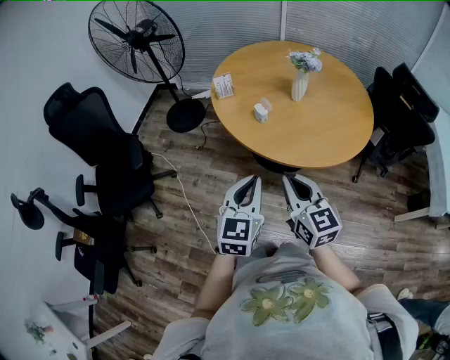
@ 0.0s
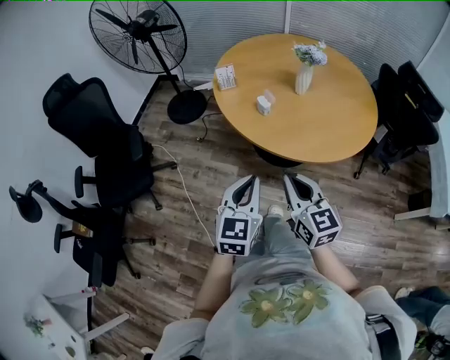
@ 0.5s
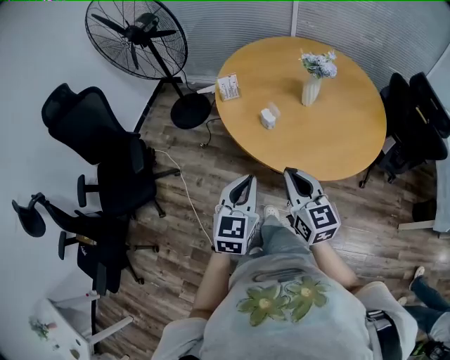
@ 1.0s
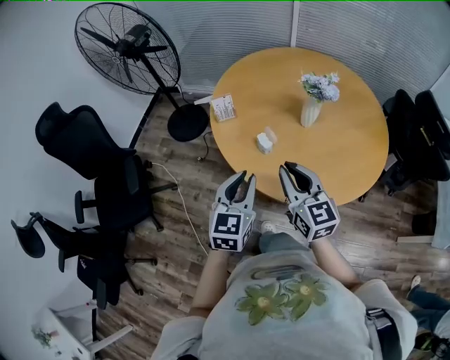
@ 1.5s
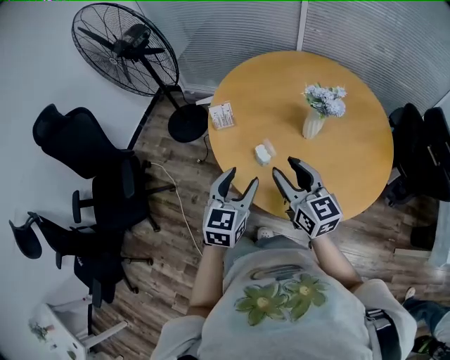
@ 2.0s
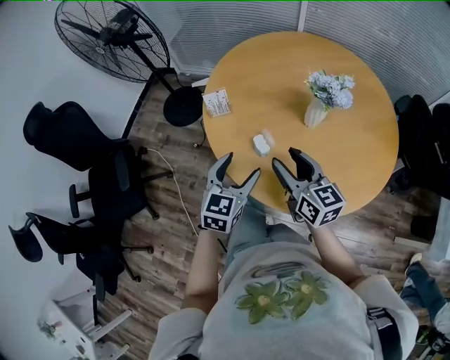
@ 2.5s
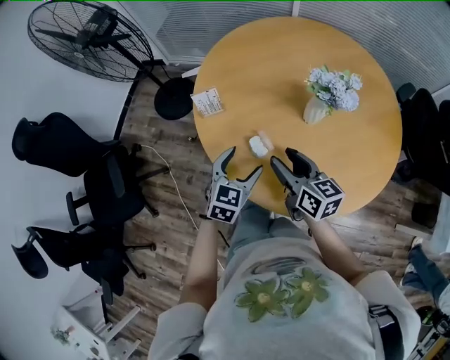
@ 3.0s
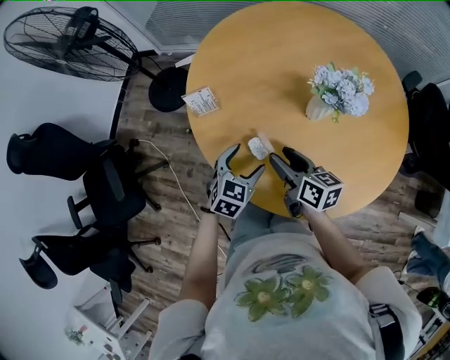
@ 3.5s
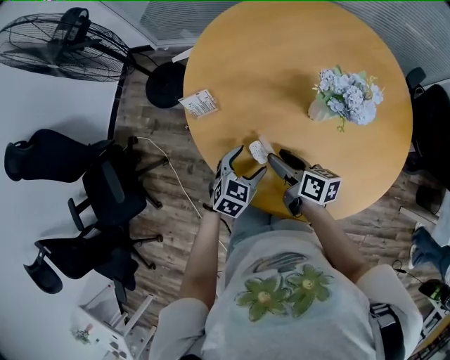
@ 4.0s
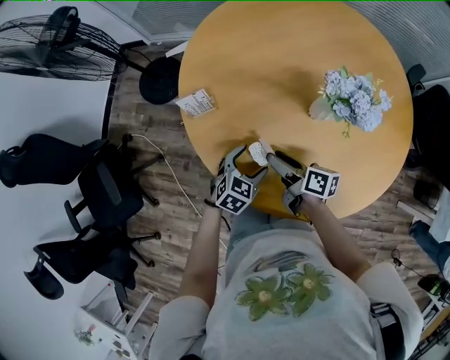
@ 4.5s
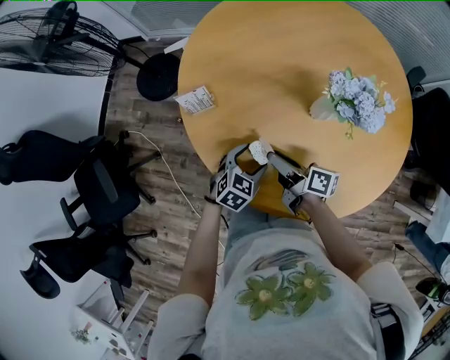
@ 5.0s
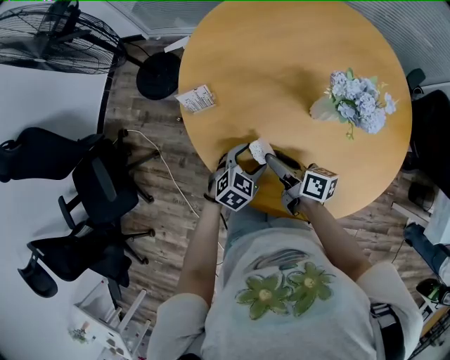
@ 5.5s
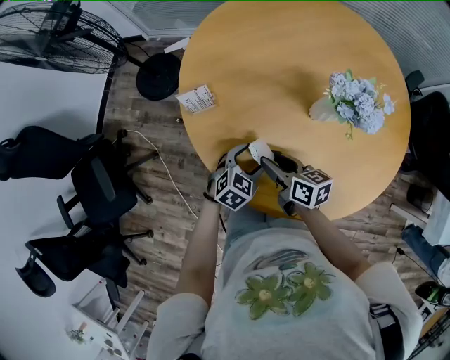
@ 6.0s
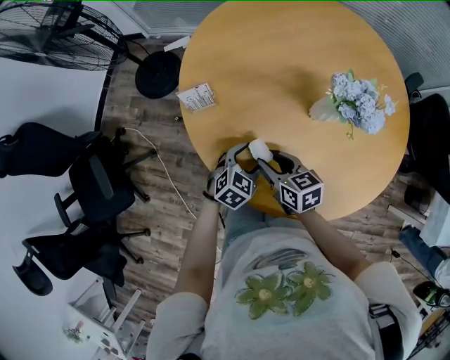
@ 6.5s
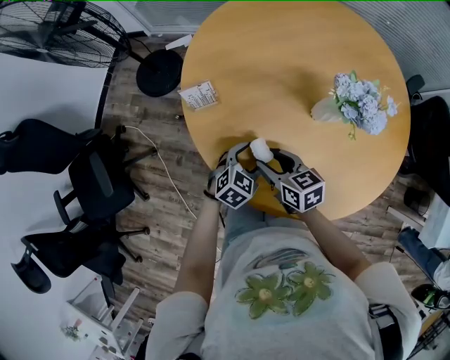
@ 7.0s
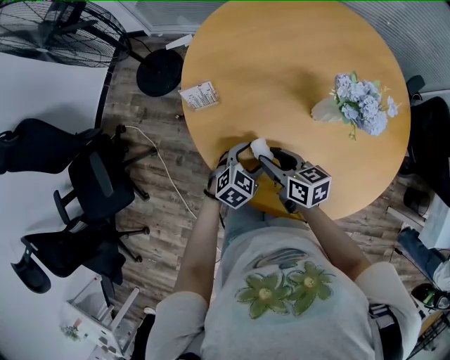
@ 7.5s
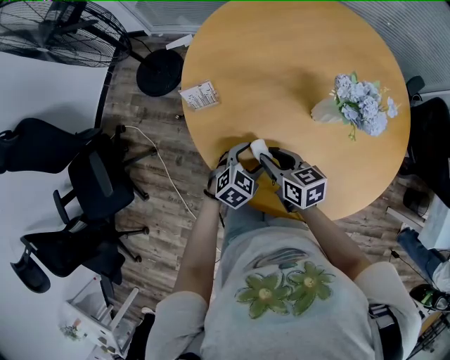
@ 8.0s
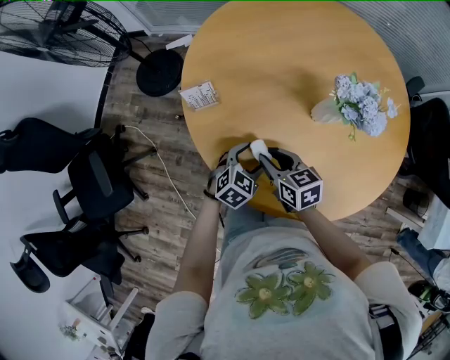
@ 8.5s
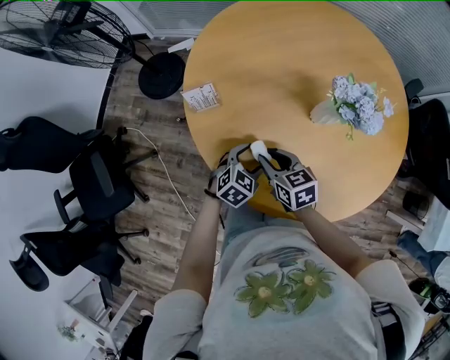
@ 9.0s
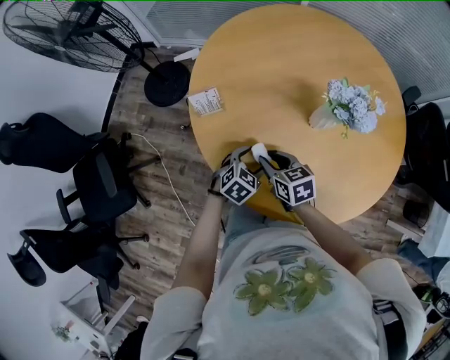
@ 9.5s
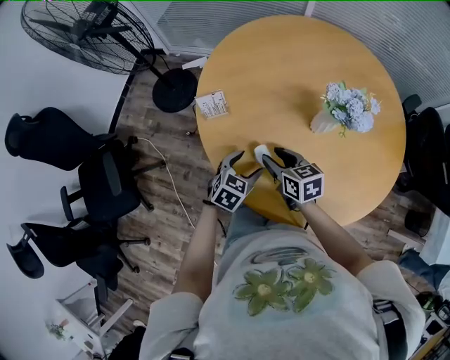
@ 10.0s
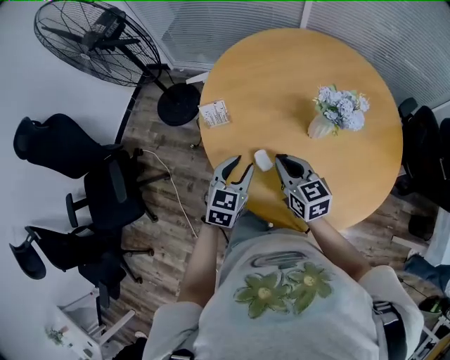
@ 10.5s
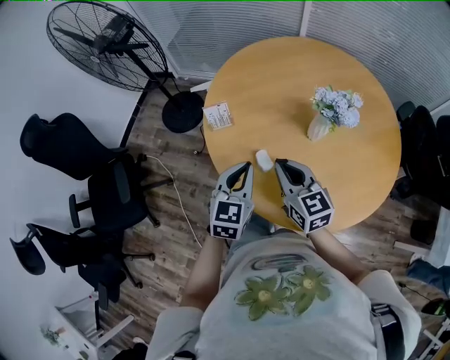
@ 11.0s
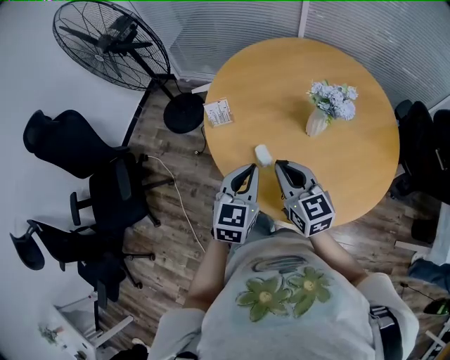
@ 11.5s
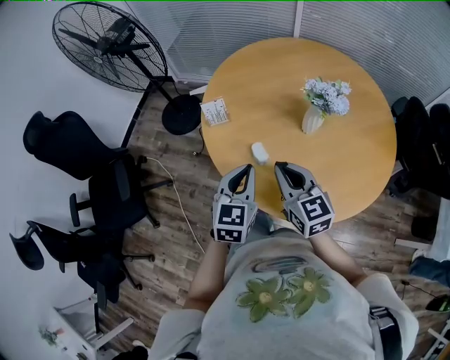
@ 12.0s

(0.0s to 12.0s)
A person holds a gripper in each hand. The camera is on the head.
0.0s - 2.0s: Both grippers travel together forward, roughly 30 cm. The left gripper opens its fingers. Meanwhile the right gripper opens up.
2.0s - 4.0s: Both grippers move downward and forward, approximately 25 cm. The right gripper twists approximately 50 degrees clockwise, seen from behind; the left gripper rotates about 30 degrees.
4.0s - 6.0s: The grippers move only a little.
8.0s - 10.0s: The left gripper changes place by about 5 cm.
10.0s - 12.0s: The right gripper moves upward and backward, about 20 cm, swivels approximately 30 degrees, and closes up; the left gripper travels upward by roughly 20 cm, rotates about 30 degrees, and closes its fingers.

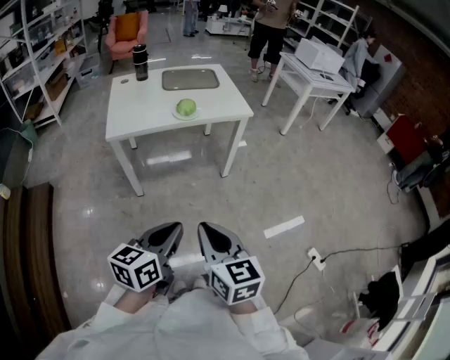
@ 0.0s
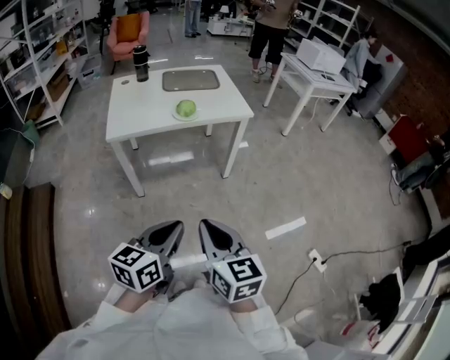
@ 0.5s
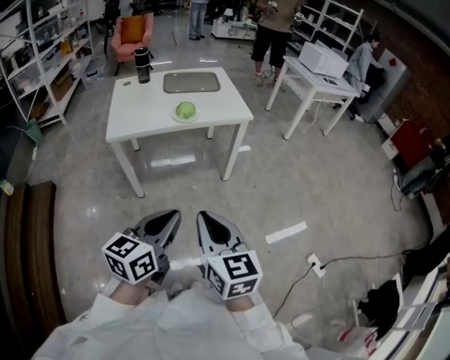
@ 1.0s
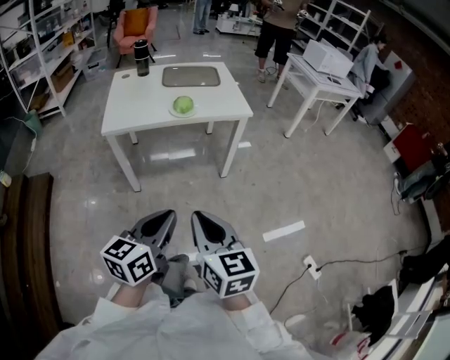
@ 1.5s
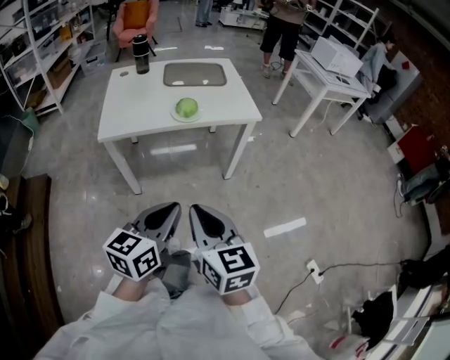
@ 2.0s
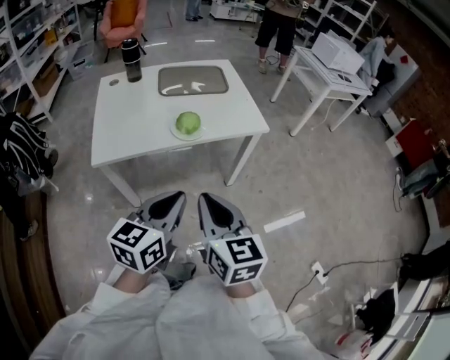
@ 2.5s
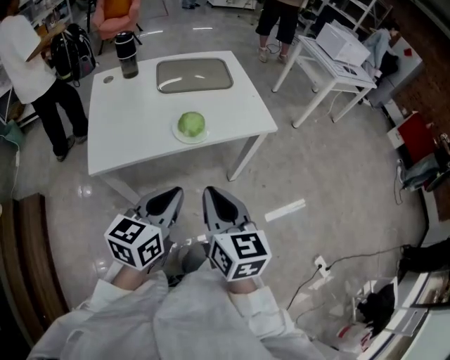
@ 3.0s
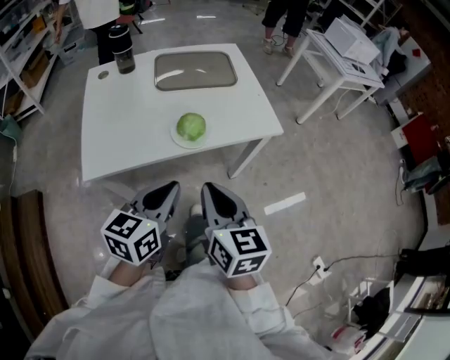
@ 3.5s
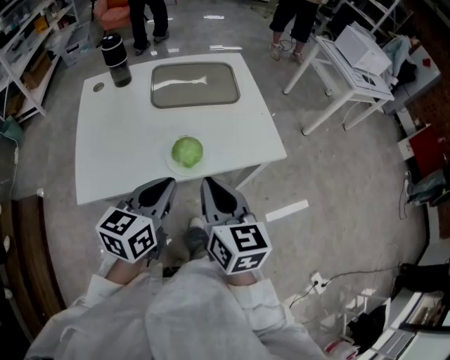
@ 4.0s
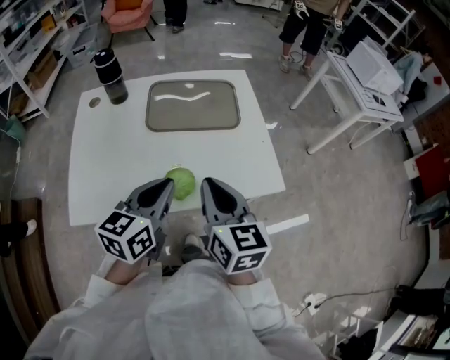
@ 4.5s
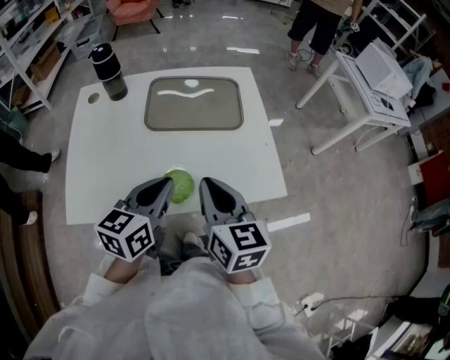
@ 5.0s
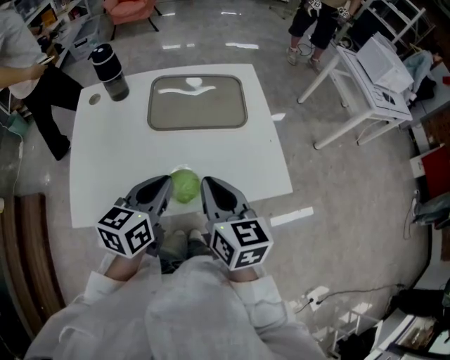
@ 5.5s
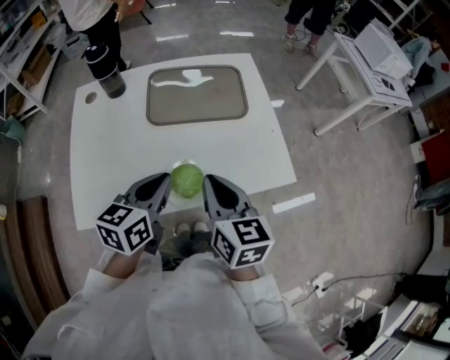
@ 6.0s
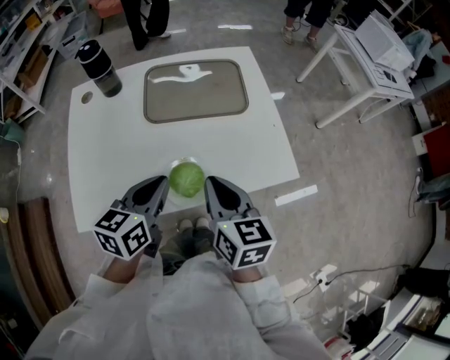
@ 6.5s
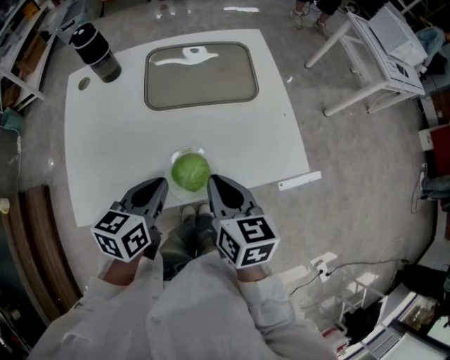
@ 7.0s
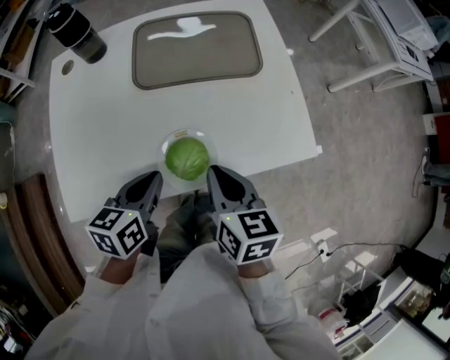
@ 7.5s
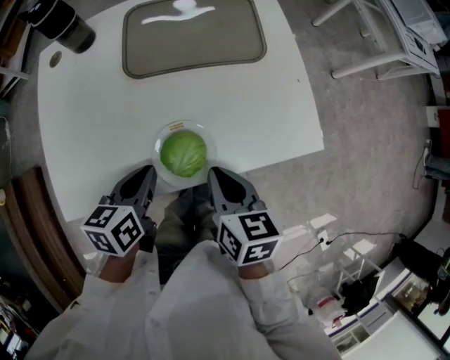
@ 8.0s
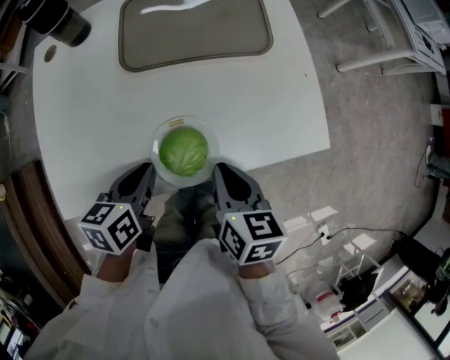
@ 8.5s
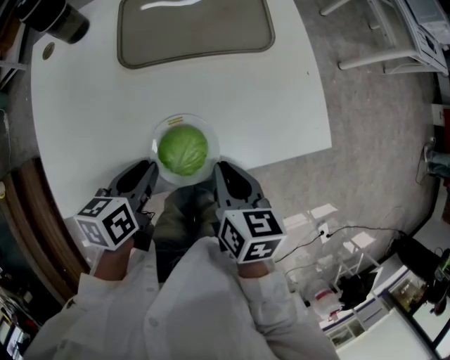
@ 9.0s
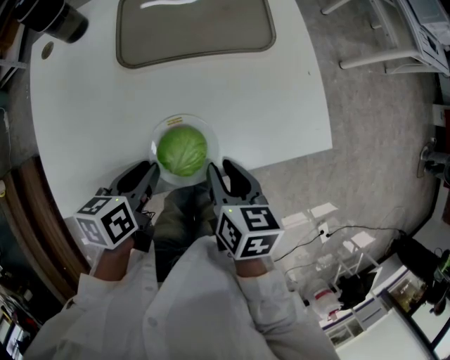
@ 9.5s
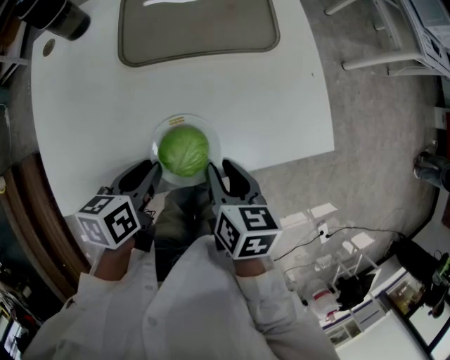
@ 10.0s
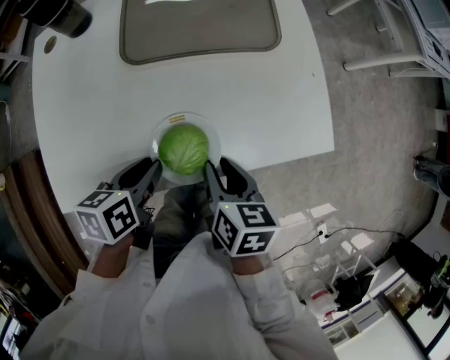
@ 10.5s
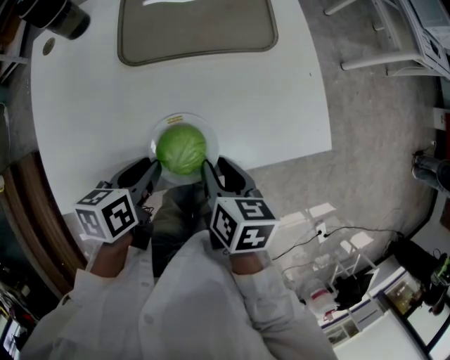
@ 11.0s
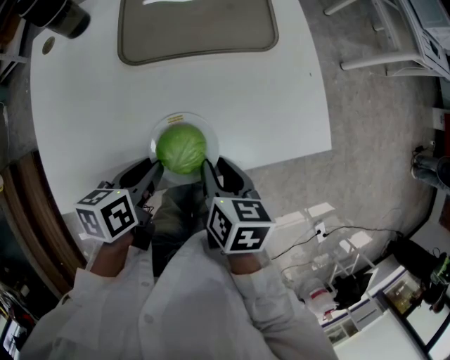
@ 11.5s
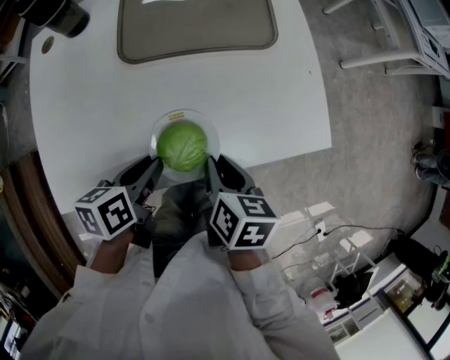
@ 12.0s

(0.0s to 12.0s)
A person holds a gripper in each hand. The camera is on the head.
0.0s - 2.0s: The grippers both shift forward by roughly 15 cm.
2.0s - 4.0s: The pair of grippers is taken forward, some 40 cm.
4.0s - 6.0s: Both grippers move forward, roughly 15 cm.
6.0s - 8.0s: Both grippers move downward, roughly 15 cm. The left gripper swivels about 20 degrees. Meanwhile the right gripper swivels about 20 degrees.
8.0s - 10.0s: The right gripper opens up.
10.0s - 12.0s: There are only small adjustments of the grippers.

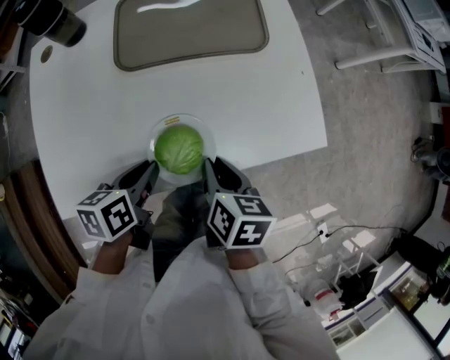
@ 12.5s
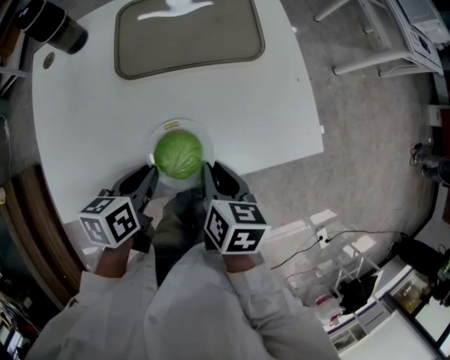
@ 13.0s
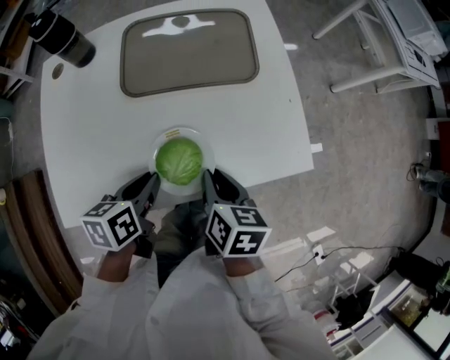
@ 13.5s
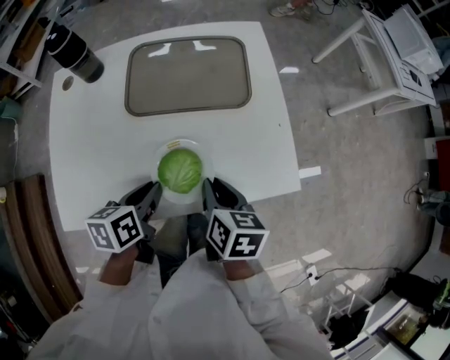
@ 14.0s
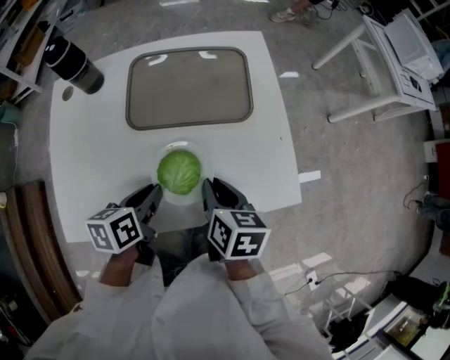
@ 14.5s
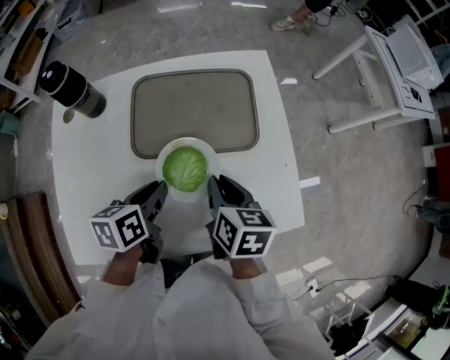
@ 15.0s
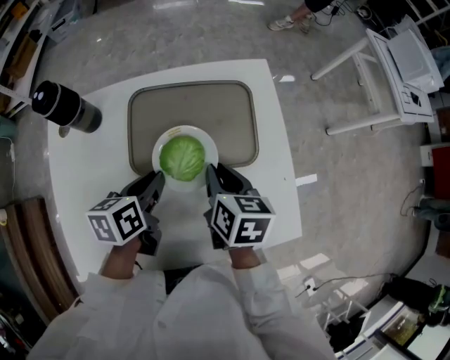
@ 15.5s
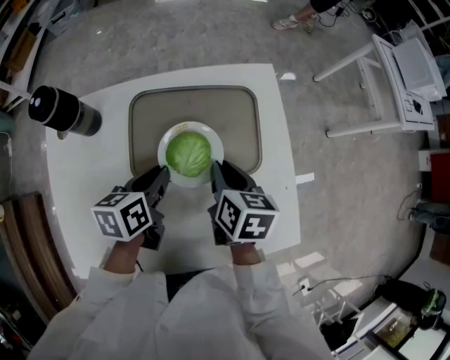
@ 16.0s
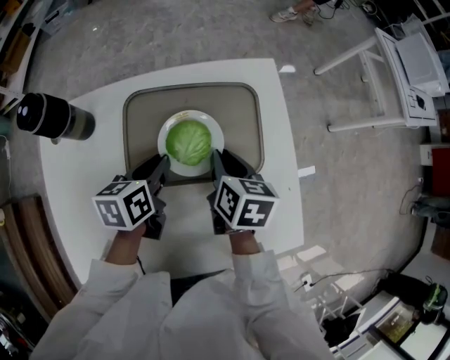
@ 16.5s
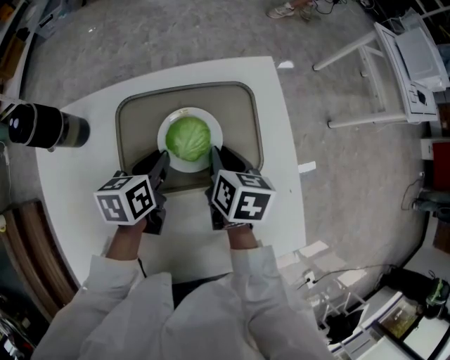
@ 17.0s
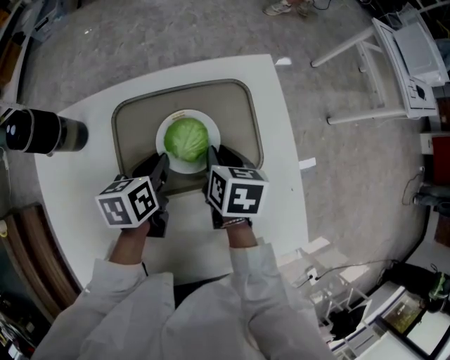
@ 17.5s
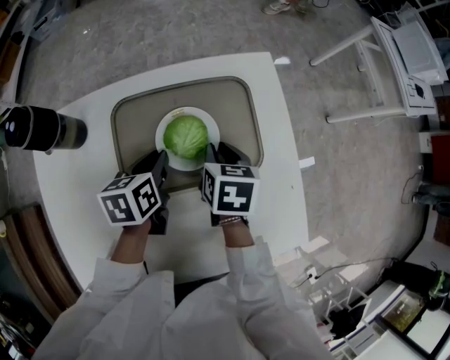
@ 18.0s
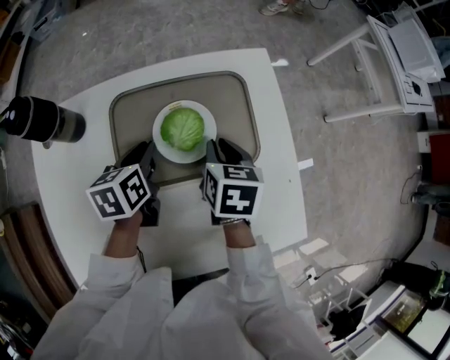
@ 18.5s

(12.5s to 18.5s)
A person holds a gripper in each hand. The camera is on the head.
12.5s - 14.5s: The two grippers go approximately 10 cm forward and upward.
14.5s - 16.5s: The grippers both shift forward by about 25 cm.
16.5s - 18.5s: The grippers move only a little.
